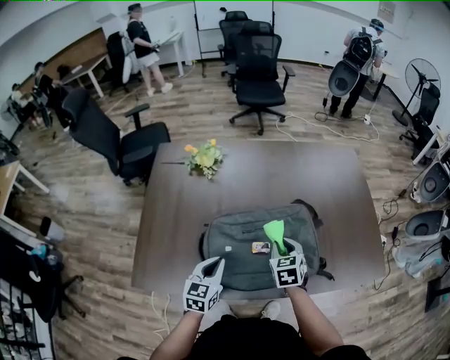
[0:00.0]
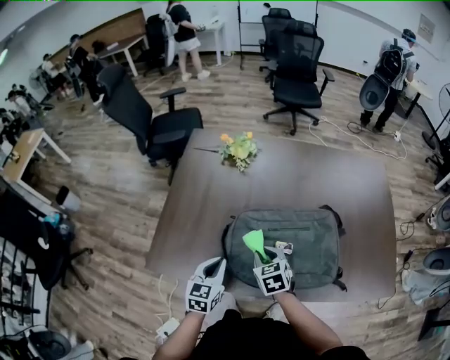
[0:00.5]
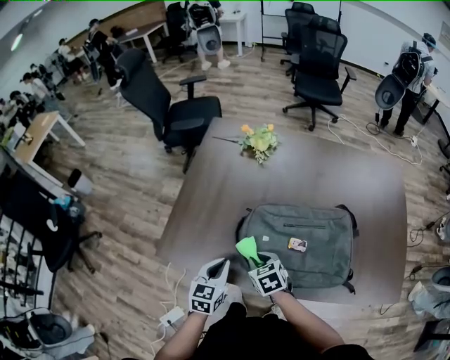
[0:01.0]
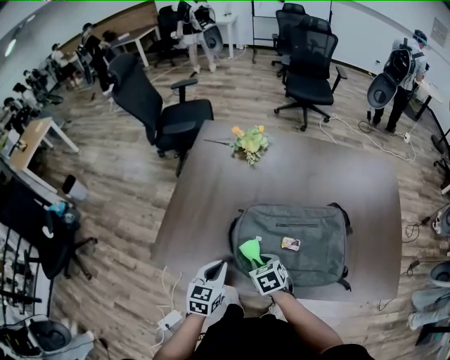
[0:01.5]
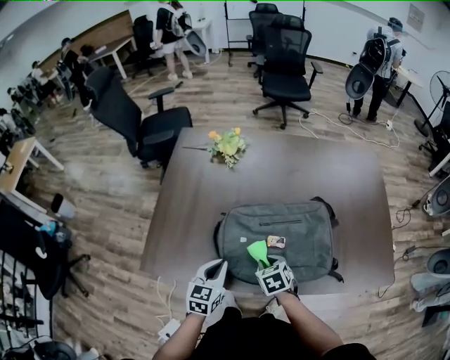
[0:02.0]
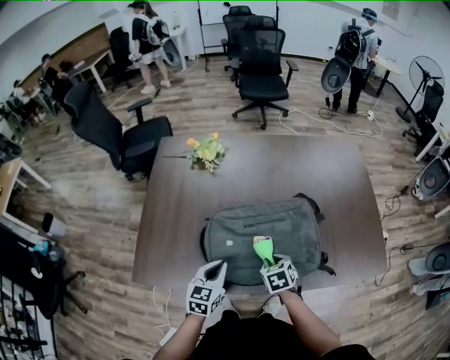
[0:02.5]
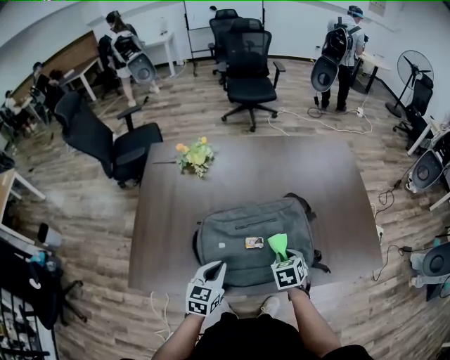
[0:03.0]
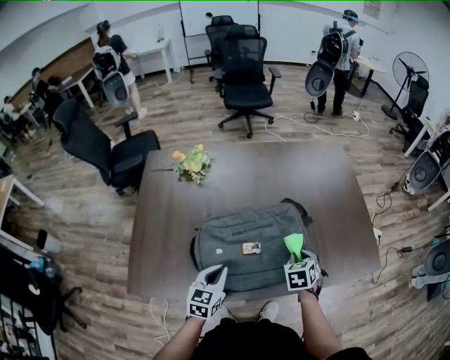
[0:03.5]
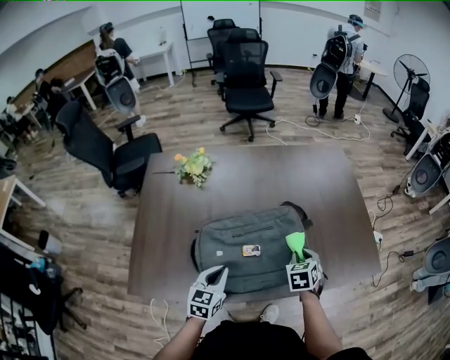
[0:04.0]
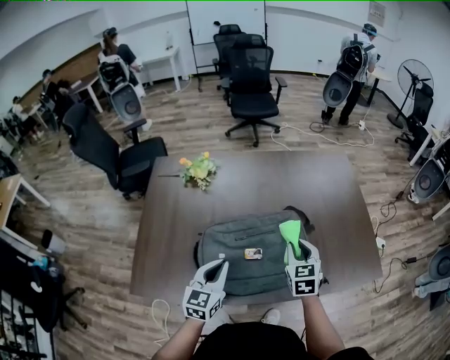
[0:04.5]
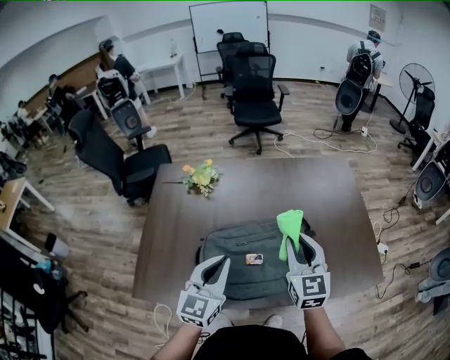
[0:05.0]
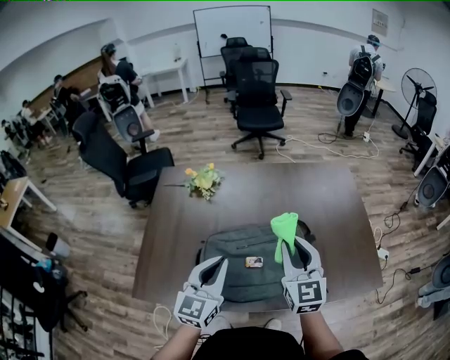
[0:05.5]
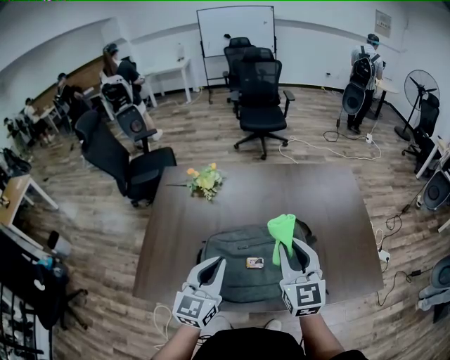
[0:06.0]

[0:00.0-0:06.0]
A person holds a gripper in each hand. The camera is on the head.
0:00.0 to 0:02.0: The right gripper turns by about 20 degrees.
0:02.0 to 0:04.0: The left gripper shifts by about 10 cm. The right gripper shifts by approximately 25 cm, and swivels some 30 degrees.
0:04.0 to 0:06.0: The left gripper travels upward by roughly 20 cm, and turns by approximately 20 degrees, while the right gripper travels upward and to the left by approximately 25 cm, and tilts its fingers approximately 50 degrees upward.

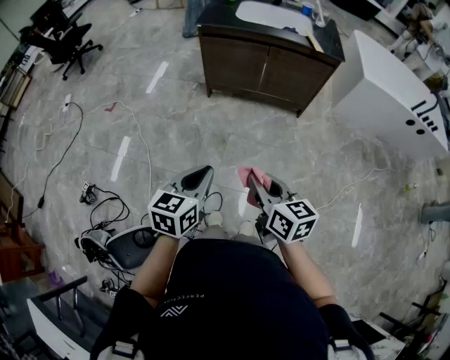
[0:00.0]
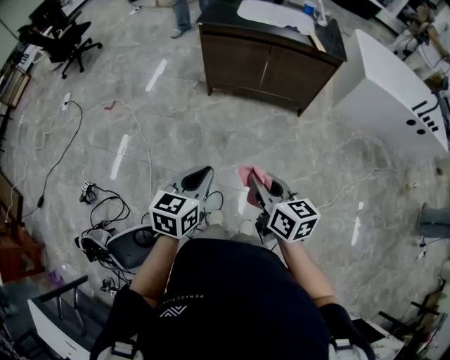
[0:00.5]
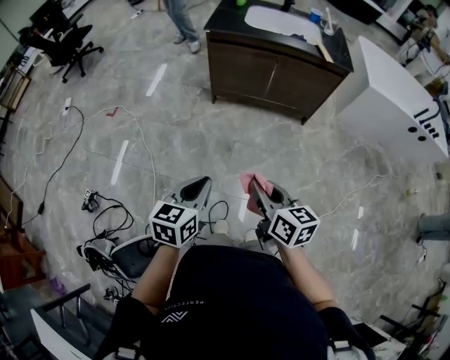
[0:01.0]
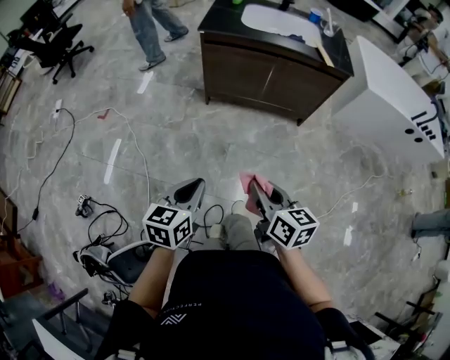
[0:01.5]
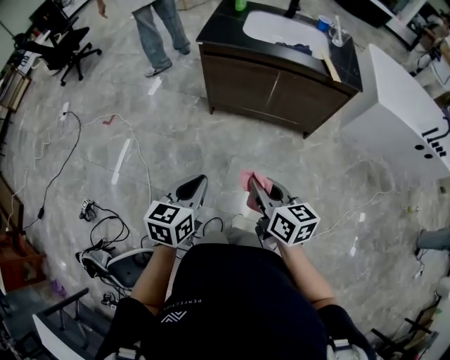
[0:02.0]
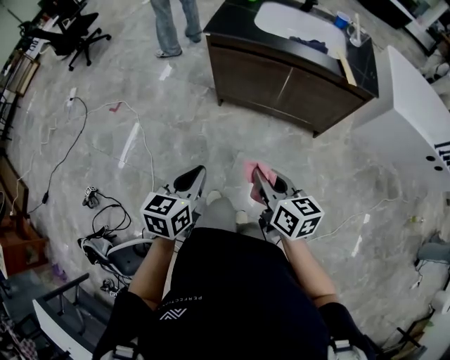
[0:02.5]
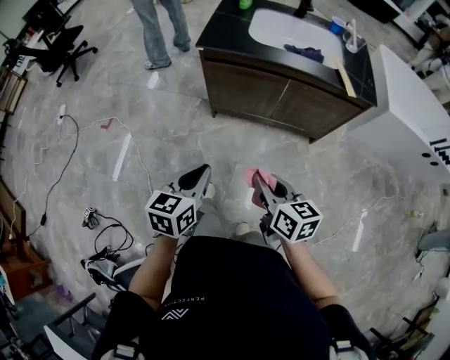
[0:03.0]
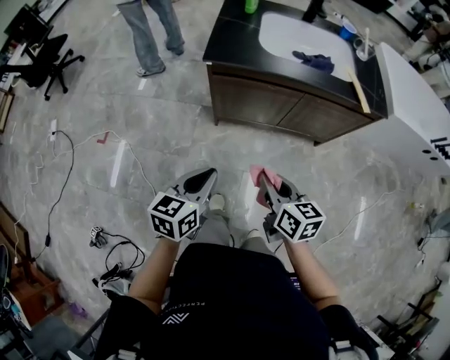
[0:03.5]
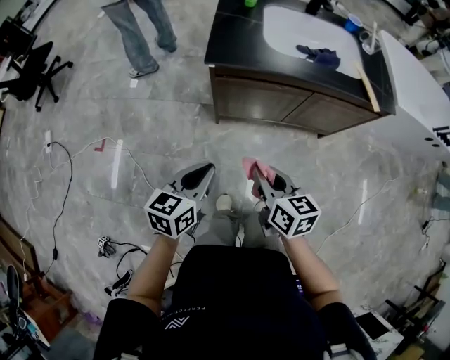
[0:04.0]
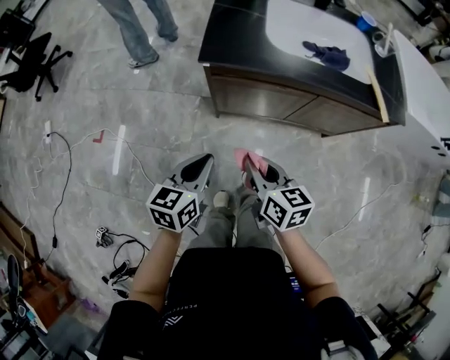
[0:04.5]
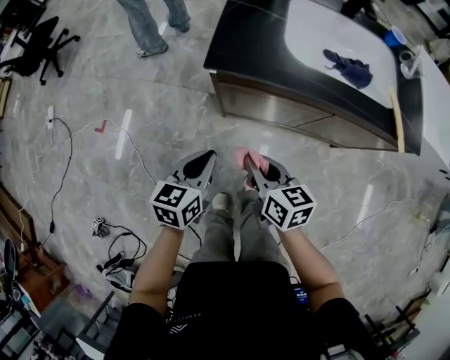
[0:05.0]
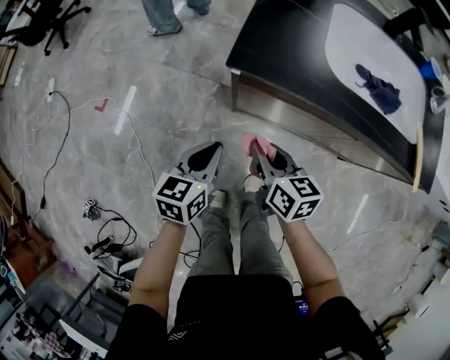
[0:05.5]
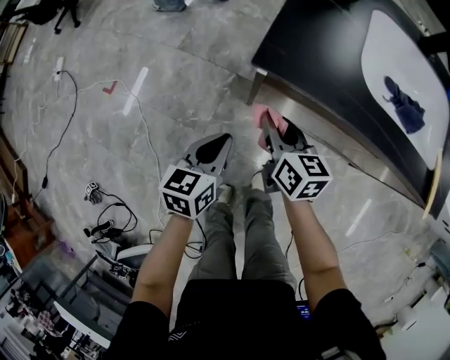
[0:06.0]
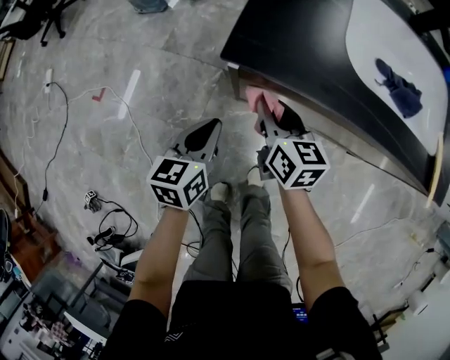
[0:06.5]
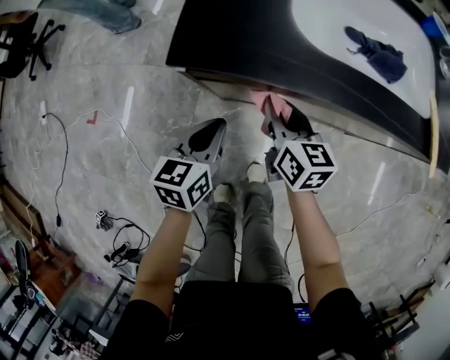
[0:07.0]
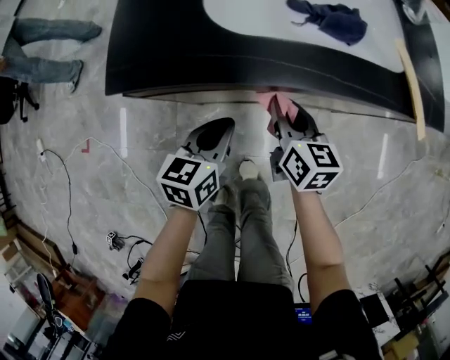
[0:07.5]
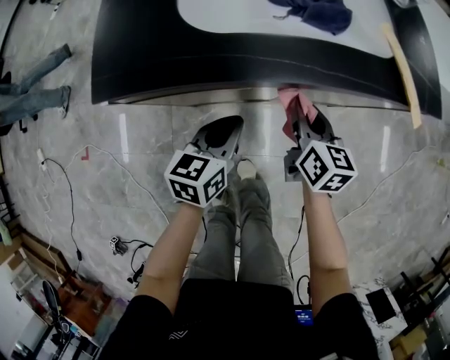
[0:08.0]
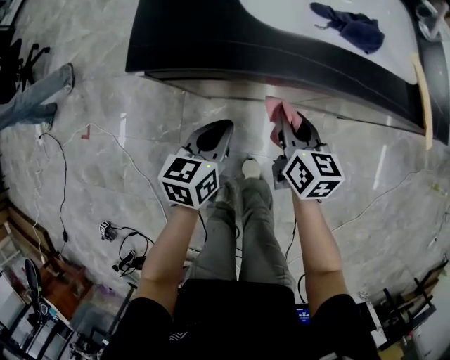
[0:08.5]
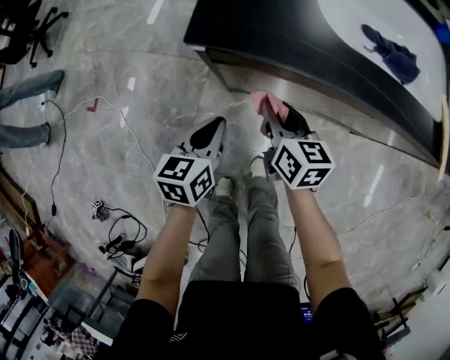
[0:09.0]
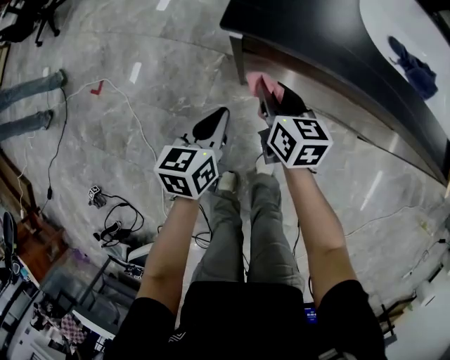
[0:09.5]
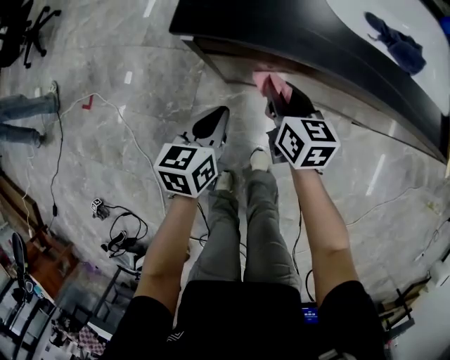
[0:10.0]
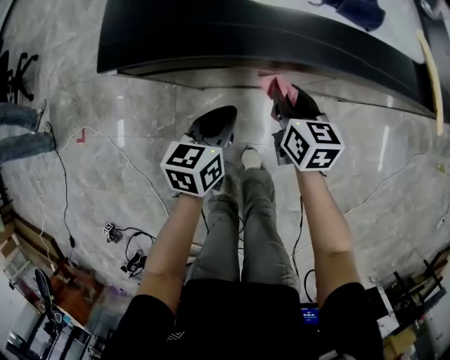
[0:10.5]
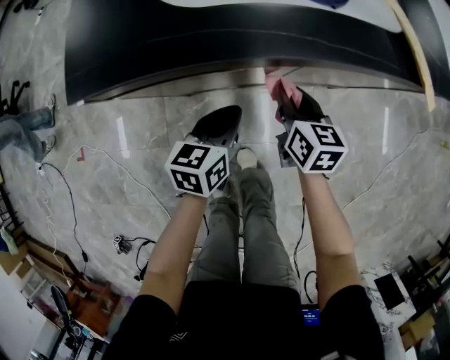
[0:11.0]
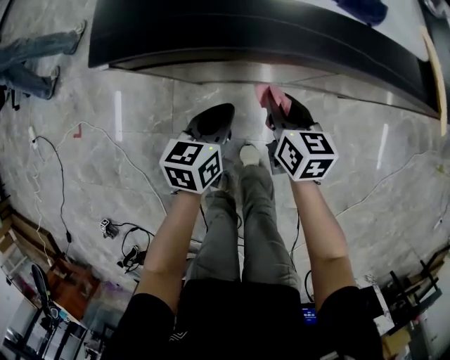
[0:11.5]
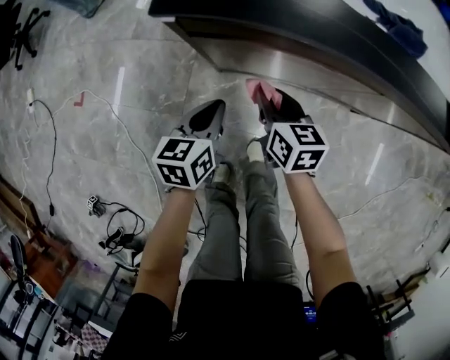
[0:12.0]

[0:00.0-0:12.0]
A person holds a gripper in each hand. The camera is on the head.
0:00.0 to 0:02.0: Both grippers travel together forward, some 20 cm.
0:02.0 to 0:04.0: The left gripper goes some 30 cm forward. The right gripper moves forward and to the left, about 30 cm.
0:04.0 to 0:06.0: The grippers both shift forward and downward by some 25 cm. The left gripper changes its angle by some 20 degrees.
0:06.0 to 0:08.0: The left gripper ends up about 25 cm from where it was, and swivels about 30 degrees, while the right gripper moves about 35 cm, and rotates approximately 30 degrees.
0:08.0 to 0:10.0: The right gripper changes place by about 25 cm, and swivels some 20 degrees. Meanwhile the left gripper shifts by some 20 cm.
0:10.0 to 0:12.0: The right gripper travels to the right and back again, some 20 cm each way. The left gripper reaches some 20 cm to the right, then returns.

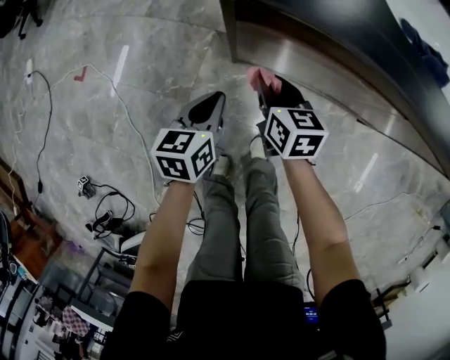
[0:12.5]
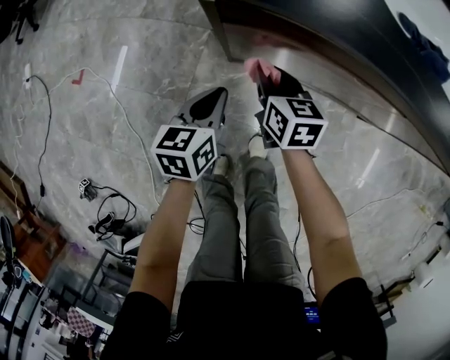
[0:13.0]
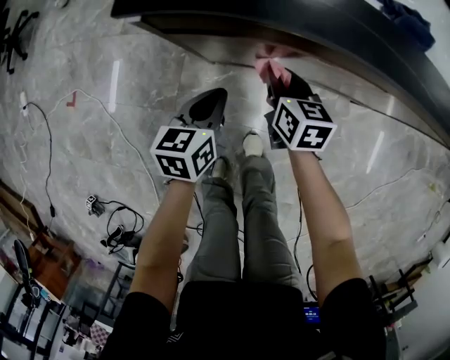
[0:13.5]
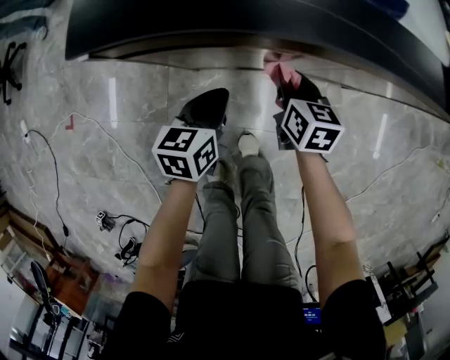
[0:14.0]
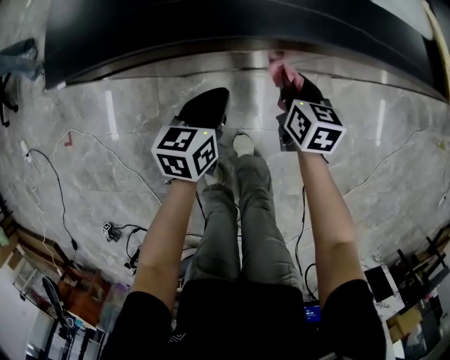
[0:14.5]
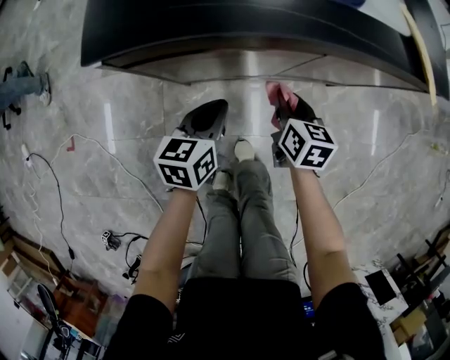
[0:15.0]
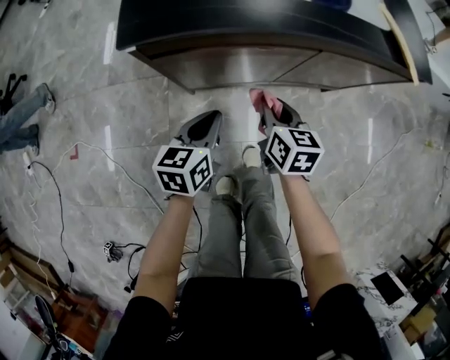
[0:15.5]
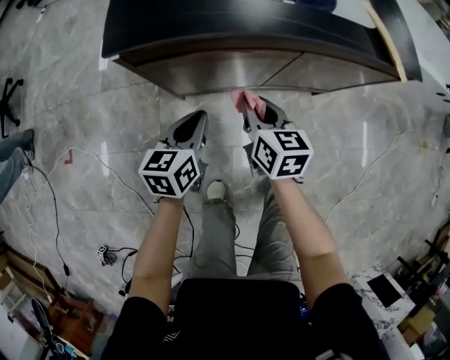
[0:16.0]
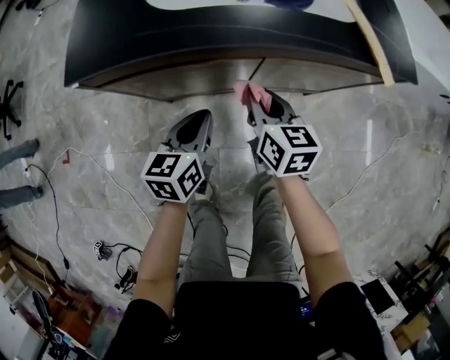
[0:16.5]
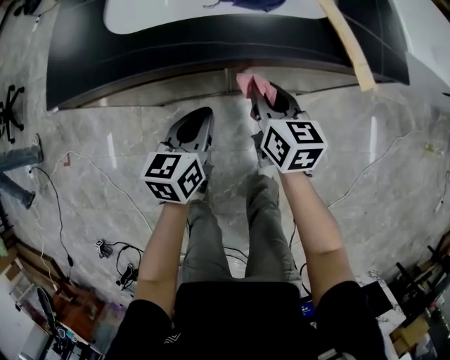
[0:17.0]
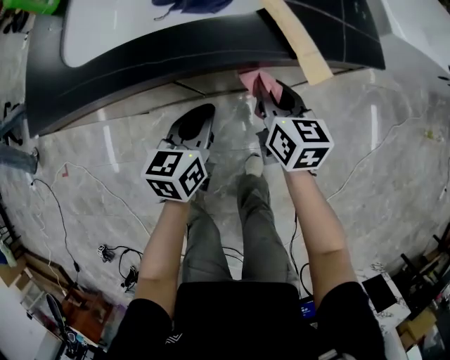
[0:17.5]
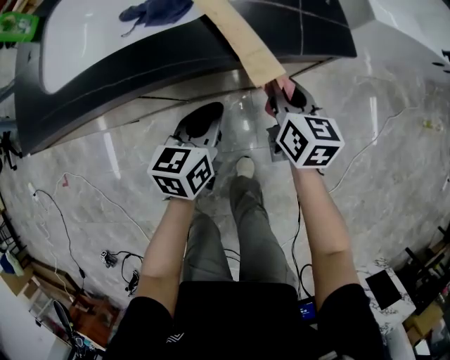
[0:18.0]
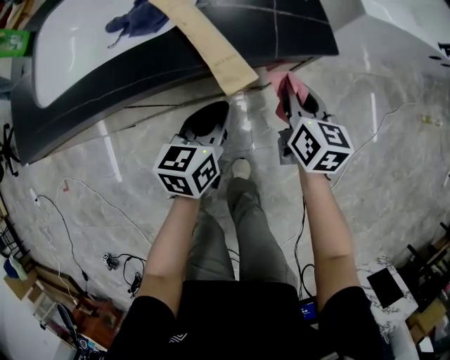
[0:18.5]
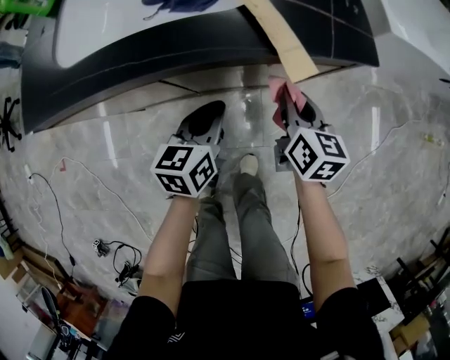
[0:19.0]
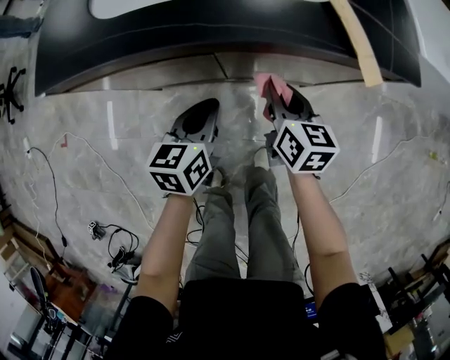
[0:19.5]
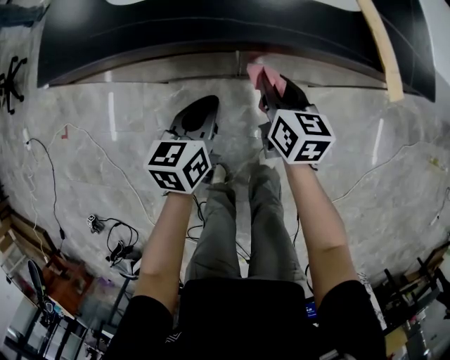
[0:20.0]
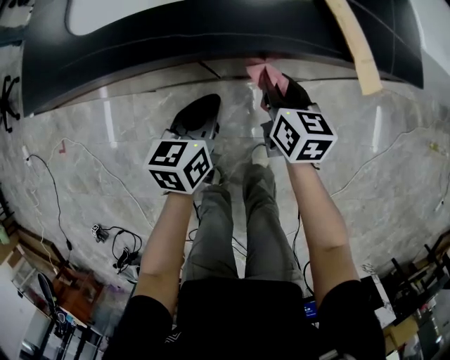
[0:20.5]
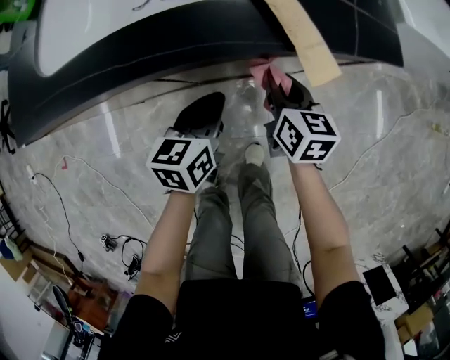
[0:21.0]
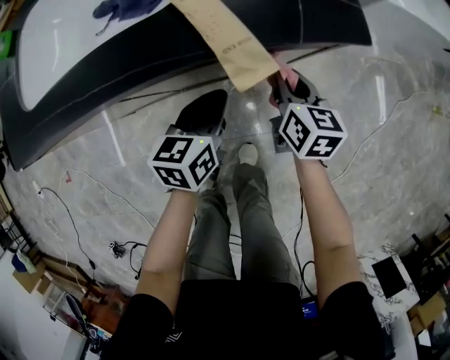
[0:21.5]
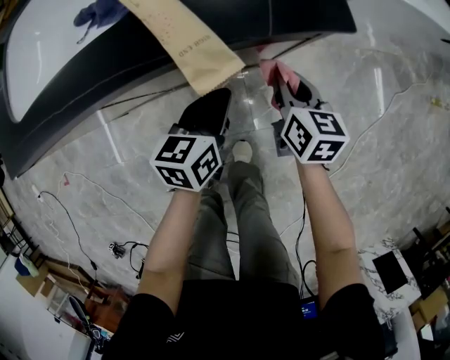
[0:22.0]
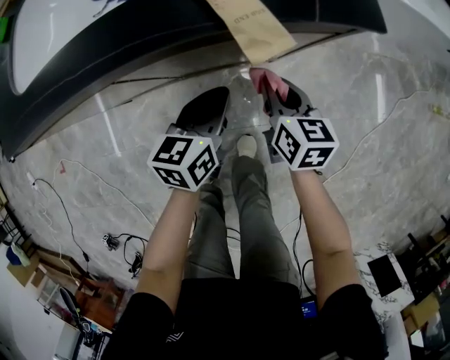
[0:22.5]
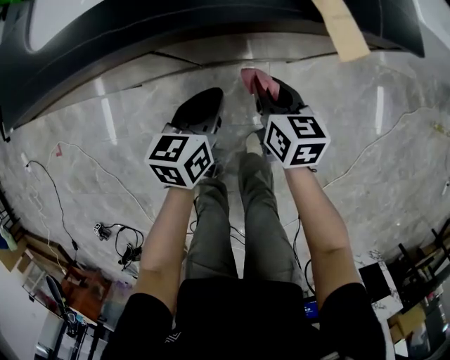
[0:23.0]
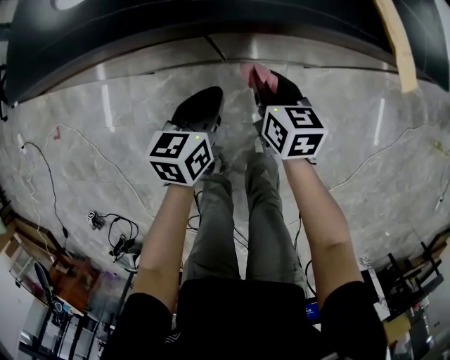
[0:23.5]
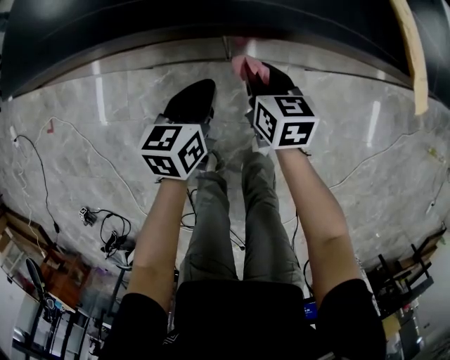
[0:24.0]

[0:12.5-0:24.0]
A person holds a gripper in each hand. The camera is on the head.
0:12.5 to 0:14.5: The right gripper moves approximately 25 cm, and swivels about 30 degrees. The left gripper changes place by roughly 20 cm, and swivels approximately 20 degrees.
0:14.5 to 0:16.5: The left gripper is displaced upward and to the right by roughly 10 cm, while the right gripper shifts about 15 cm upward.
0:16.5 to 0:18.5: Both grippers move to the right, approximately 35 cm.
0:18.5 to 0:20.0: The grippers both shift to the left by roughly 25 cm.
0:20.0 to 0:22.0: The two grippers go about 25 cm to the right.
0:22.0 to 0:24.0: Both grippers move to the left, about 25 cm. The right gripper changes its angle by roughly 20 degrees.
